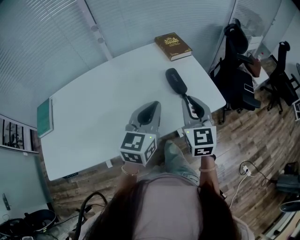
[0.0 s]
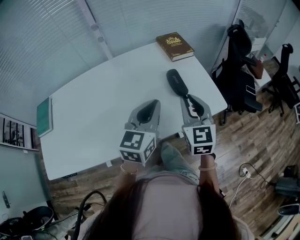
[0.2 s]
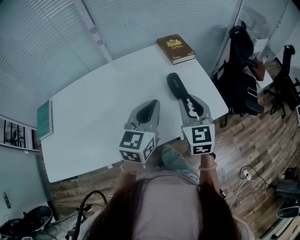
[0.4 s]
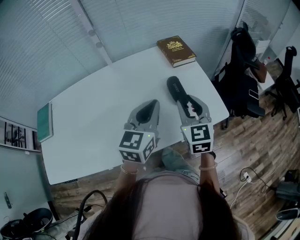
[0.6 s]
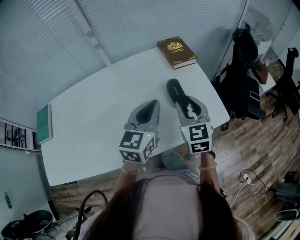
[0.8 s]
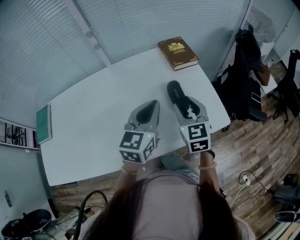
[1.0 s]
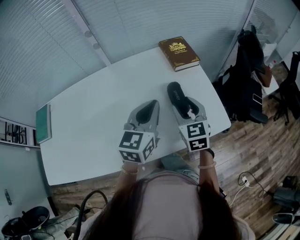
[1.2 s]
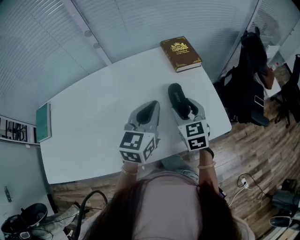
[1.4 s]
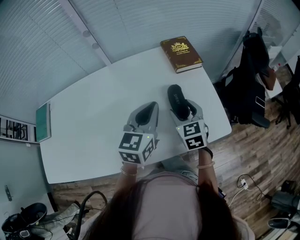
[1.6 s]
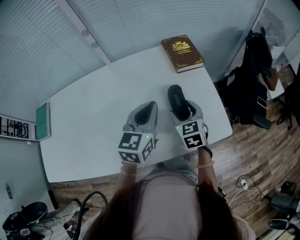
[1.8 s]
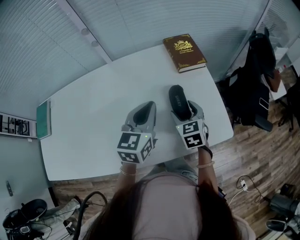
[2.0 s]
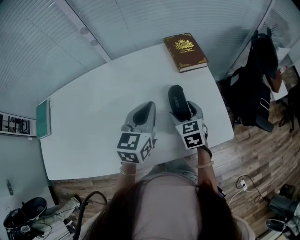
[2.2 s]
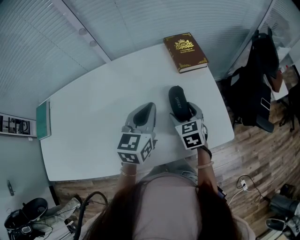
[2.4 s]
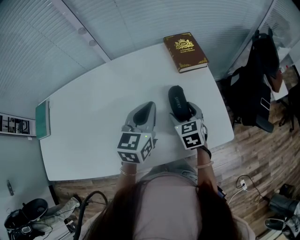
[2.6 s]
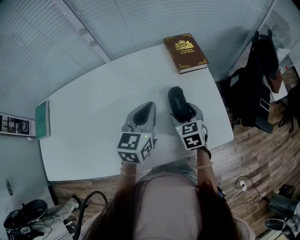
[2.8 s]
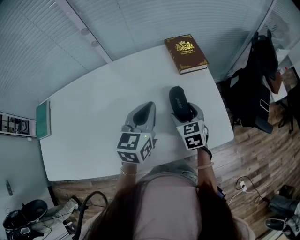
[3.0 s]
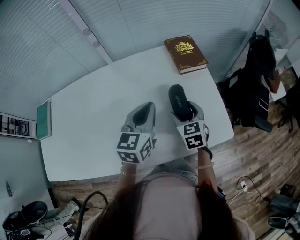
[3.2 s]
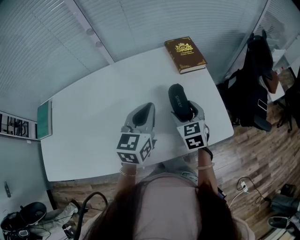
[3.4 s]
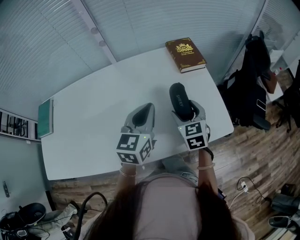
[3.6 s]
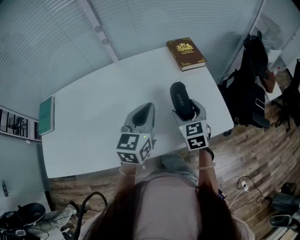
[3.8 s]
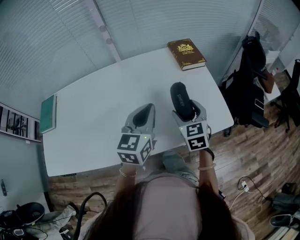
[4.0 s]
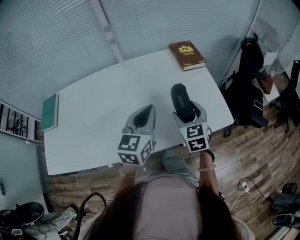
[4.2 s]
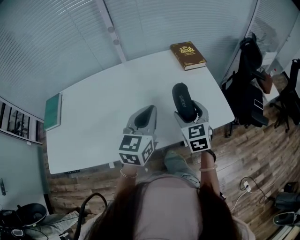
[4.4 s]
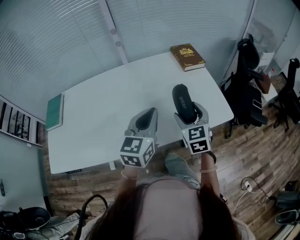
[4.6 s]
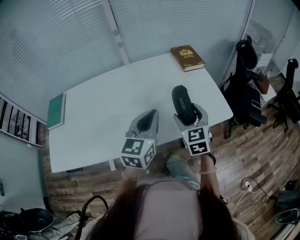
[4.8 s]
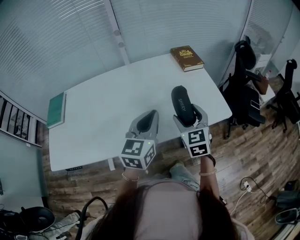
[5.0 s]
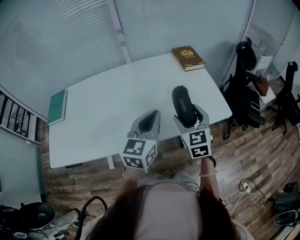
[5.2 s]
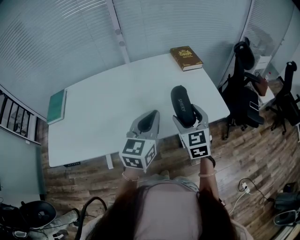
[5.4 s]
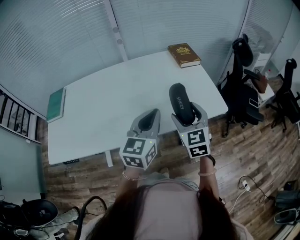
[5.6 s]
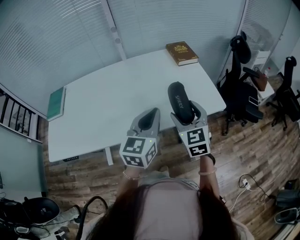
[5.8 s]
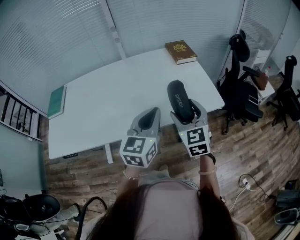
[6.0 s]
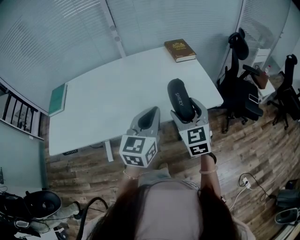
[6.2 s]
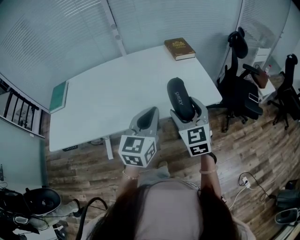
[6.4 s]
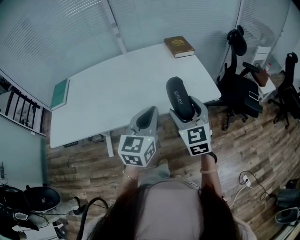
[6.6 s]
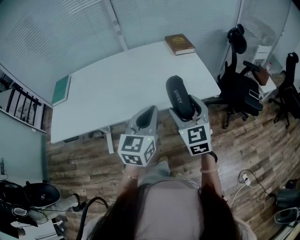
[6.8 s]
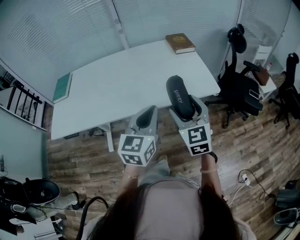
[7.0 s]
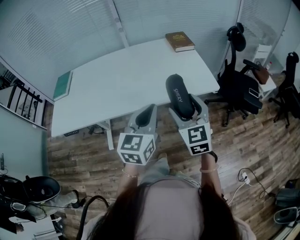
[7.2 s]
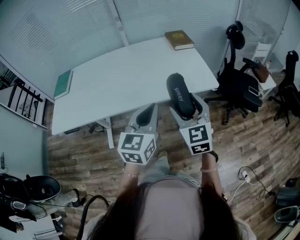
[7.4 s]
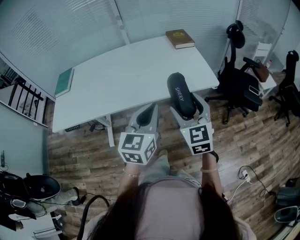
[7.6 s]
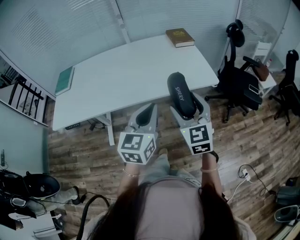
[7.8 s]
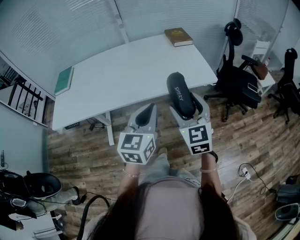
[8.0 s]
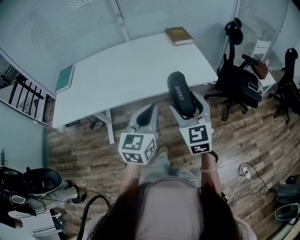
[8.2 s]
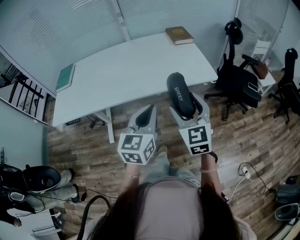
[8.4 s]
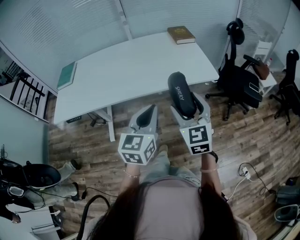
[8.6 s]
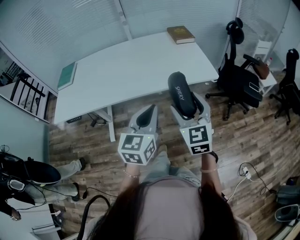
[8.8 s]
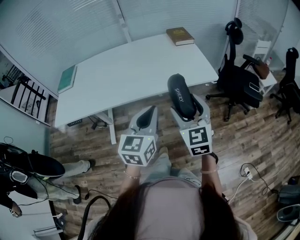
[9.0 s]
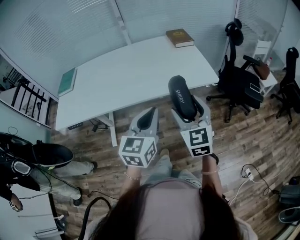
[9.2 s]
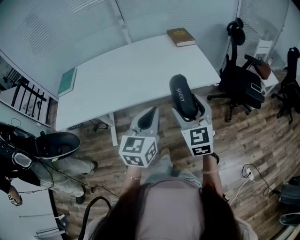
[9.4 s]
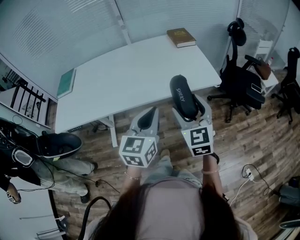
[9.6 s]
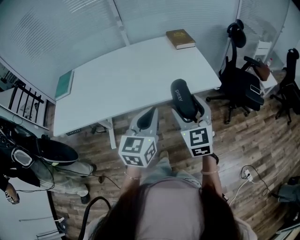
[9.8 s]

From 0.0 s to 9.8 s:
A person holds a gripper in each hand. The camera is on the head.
From 0.0 s to 1.4 s: The right gripper heads forward and downward, covering roughly 20 cm, and opens its fingers. The left gripper goes approximately 15 cm forward.
From 1.4 s to 2.8 s: The right gripper is displaced downward by roughly 10 cm; the left gripper ends up some 5 cm from where it was.
From 2.8 s to 4.2 s: The right gripper shifts roughly 15 cm backward and upward; the left gripper shifts some 15 cm backward, to the left and upward.
From 4.2 s to 5.6 s: The left gripper travels backward by approximately 10 cm, while the right gripper is displaced backward and upward by approximately 15 cm.
From 5.6 s to 7.0 s: Both grippers move backward, some 15 cm.
From 7.0 s to 8.4 s: Both grippers move backward, approximately 10 cm.
From 8.4 s to 9.8 s: There are only small adjustments of the grippers.

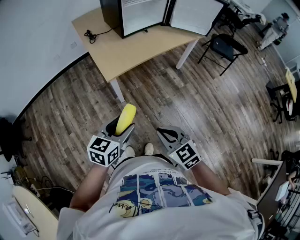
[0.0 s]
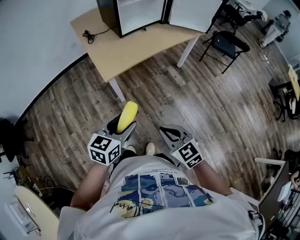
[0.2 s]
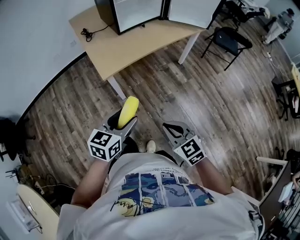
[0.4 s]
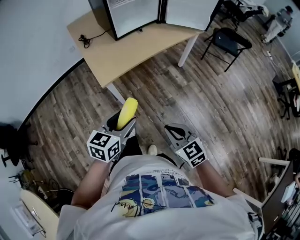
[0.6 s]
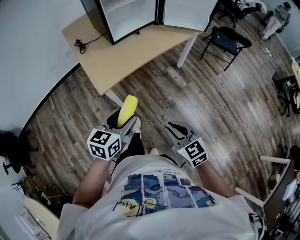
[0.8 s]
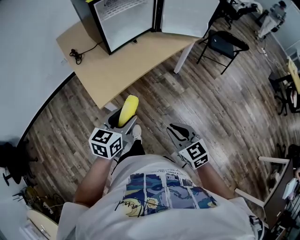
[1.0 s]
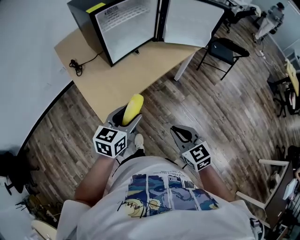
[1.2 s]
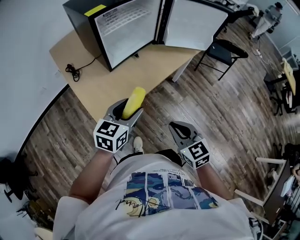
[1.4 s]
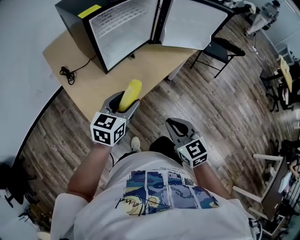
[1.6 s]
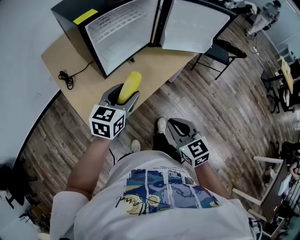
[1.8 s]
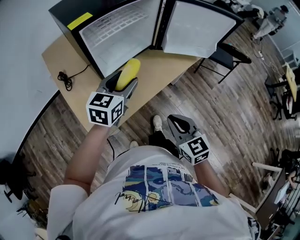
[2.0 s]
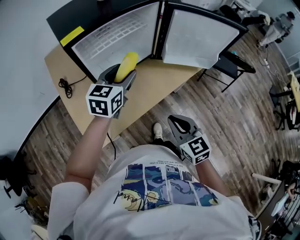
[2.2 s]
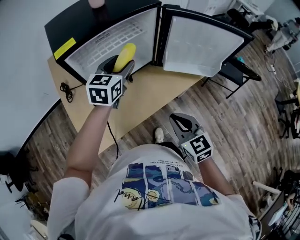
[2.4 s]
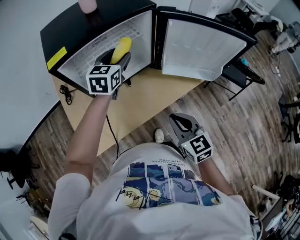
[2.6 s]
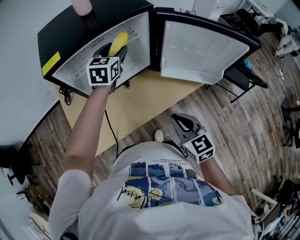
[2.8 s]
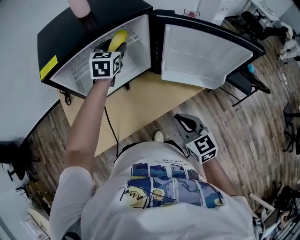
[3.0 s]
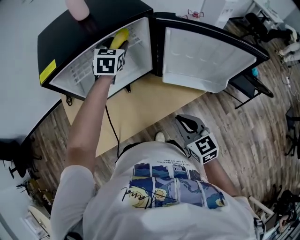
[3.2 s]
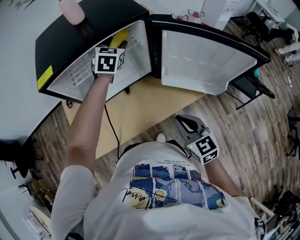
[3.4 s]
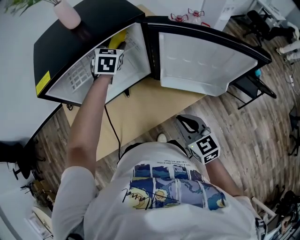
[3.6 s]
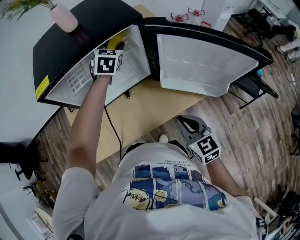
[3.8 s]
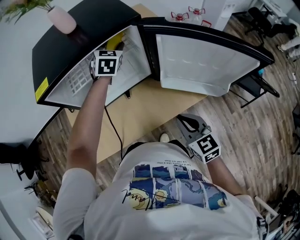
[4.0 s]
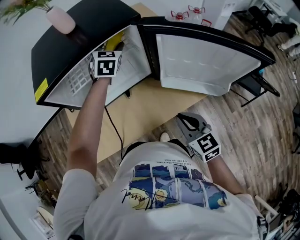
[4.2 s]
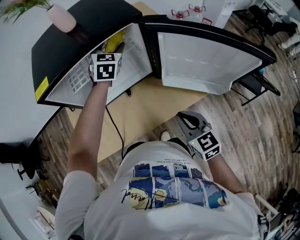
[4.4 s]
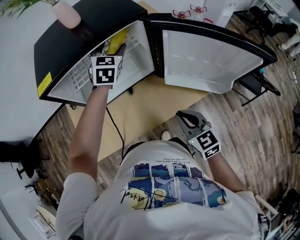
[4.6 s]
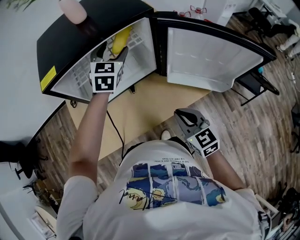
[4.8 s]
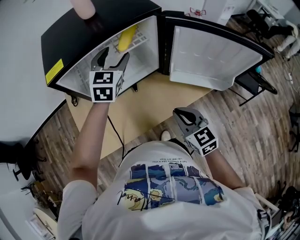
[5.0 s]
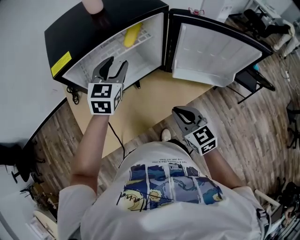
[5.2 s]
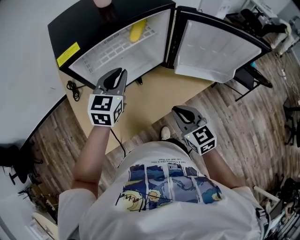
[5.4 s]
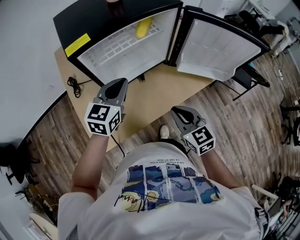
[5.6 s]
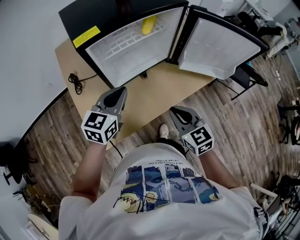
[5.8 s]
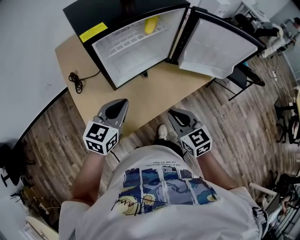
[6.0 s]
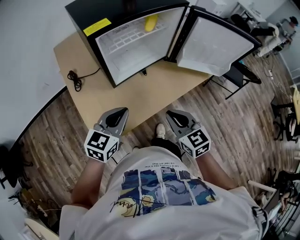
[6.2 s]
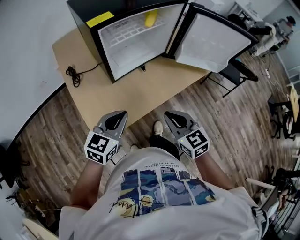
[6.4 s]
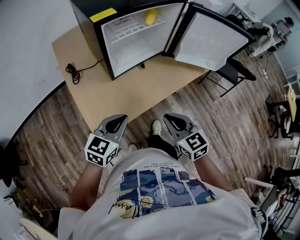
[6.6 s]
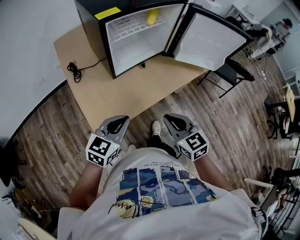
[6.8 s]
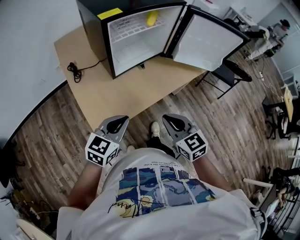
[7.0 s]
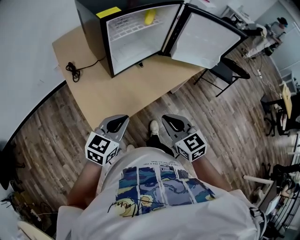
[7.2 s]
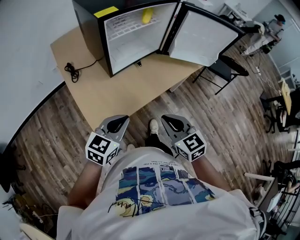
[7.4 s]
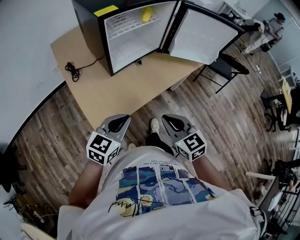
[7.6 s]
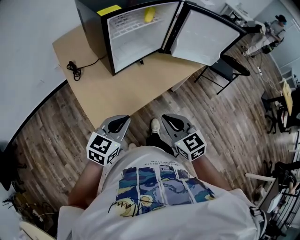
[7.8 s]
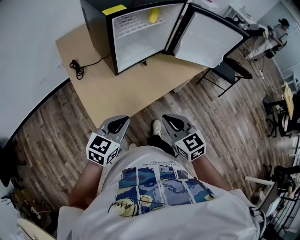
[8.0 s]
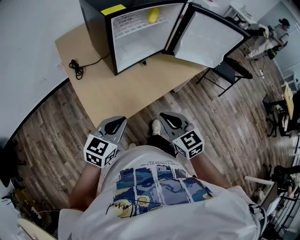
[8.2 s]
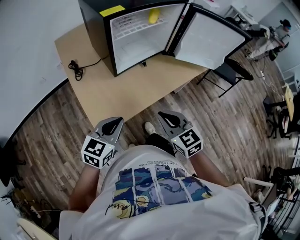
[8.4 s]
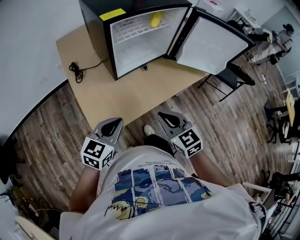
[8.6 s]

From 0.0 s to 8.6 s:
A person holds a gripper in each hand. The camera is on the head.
From 0.0 s to 1.4 s: Both grippers travel together forward, roughly 30 cm.
From 1.4 s to 2.8 s: The right gripper shifts approximately 30 cm forward and to the right, while the left gripper is displaced forward by approximately 40 cm, and swivels approximately 30 degrees.
From 2.8 s to 4.4 s: The grippers both shift forward by approximately 10 cm. The left gripper rotates roughly 20 degrees.
From 4.4 s to 5.8 s: The right gripper is displaced to the left by approximately 15 cm, while the left gripper heads backward and to the left, covering approximately 30 cm, turns by roughly 40 degrees, and closes its fingers.
From 5.8 s to 7.2 s: The grippers both shift backward by about 20 cm.
From 7.2 s to 8.6 s: The grippers make only small movements.

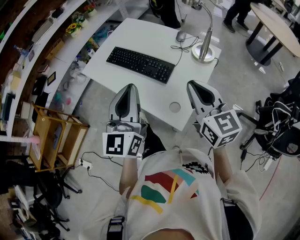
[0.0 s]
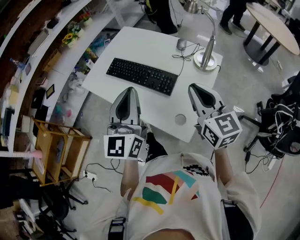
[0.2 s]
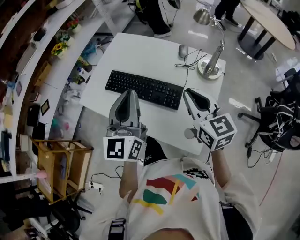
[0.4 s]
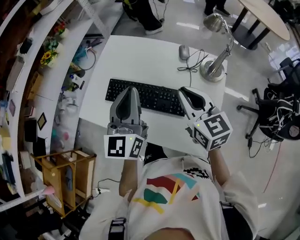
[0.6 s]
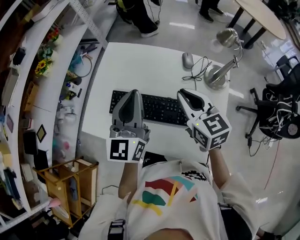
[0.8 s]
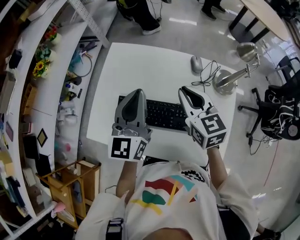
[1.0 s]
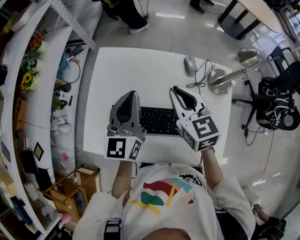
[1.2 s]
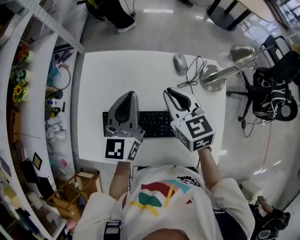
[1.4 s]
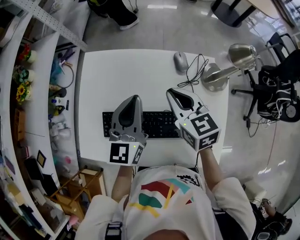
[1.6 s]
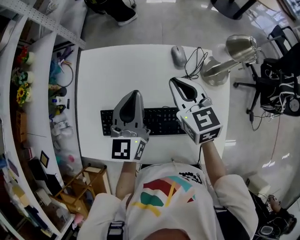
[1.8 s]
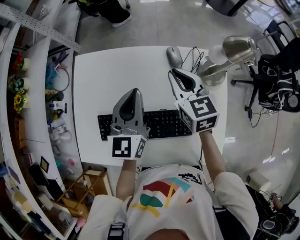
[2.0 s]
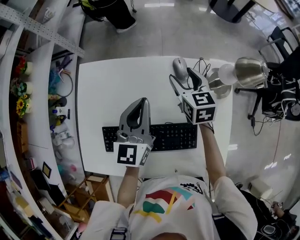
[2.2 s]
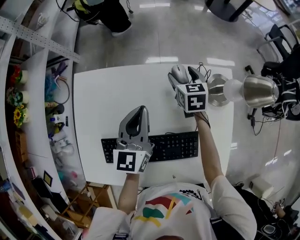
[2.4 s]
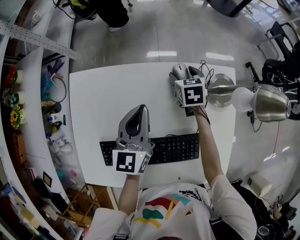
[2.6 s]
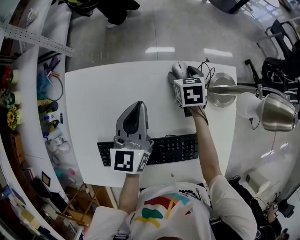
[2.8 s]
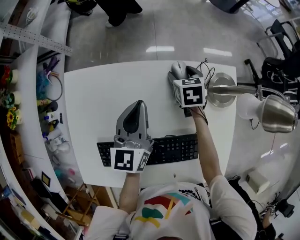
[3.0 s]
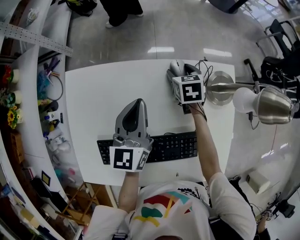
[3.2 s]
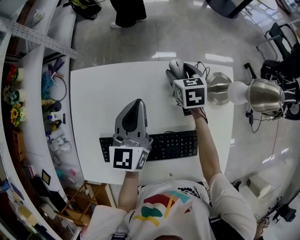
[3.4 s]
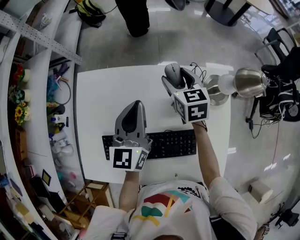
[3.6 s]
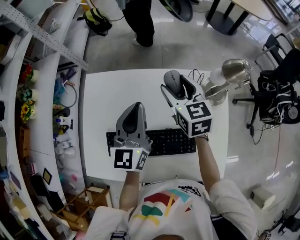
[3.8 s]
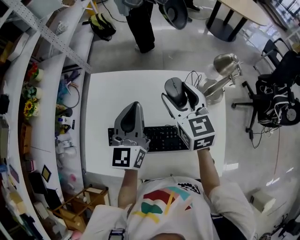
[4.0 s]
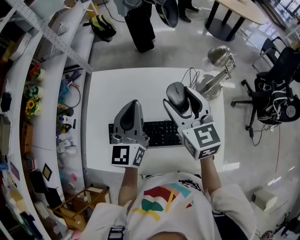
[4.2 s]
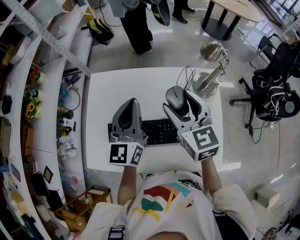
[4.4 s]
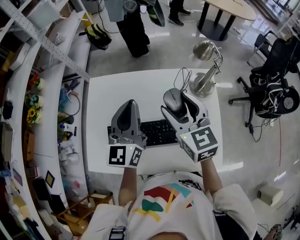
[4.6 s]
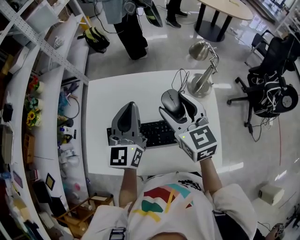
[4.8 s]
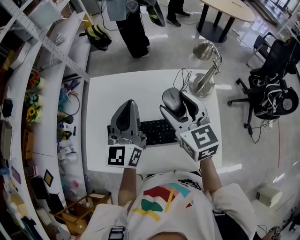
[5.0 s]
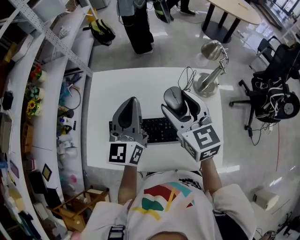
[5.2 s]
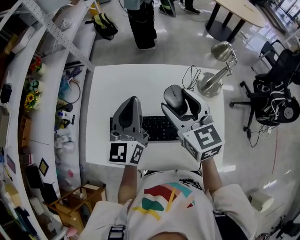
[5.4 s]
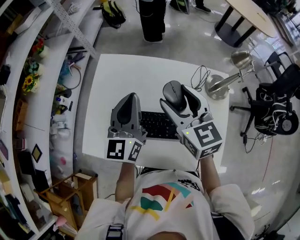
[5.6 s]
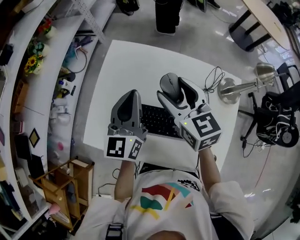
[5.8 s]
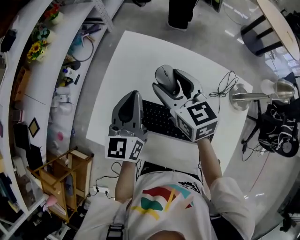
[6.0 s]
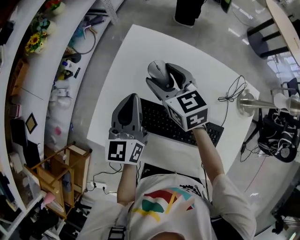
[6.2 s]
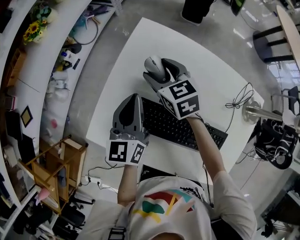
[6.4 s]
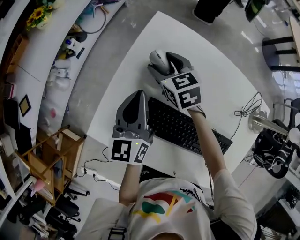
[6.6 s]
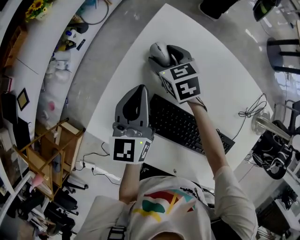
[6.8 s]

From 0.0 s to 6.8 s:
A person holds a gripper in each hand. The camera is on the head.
From 0.0 s to 1.4 s: The two grippers travel together, forward, some 50 cm. The right gripper rotates some 30 degrees. The left gripper changes its angle by approximately 30 degrees.
From 1.4 s to 2.8 s: The right gripper travels downward, forward and to the right by approximately 35 cm, changes its angle by roughly 30 degrees, and opens its fingers. The left gripper is displaced forward, downward and to the right by some 15 cm.
From 2.8 s to 4.0 s: The left gripper shifts roughly 20 cm upward and backward. Meanwhile the right gripper goes about 35 cm upward and backward, and angles its fingers upward, by about 30 degrees.
From 4.0 s to 5.4 s: The right gripper moves backward, roughly 10 cm. Meanwhile the left gripper goes about 5 cm backward.
From 5.4 s to 6.8 s: The left gripper ends up roughly 35 cm from where it was, and changes its angle by roughly 30 degrees; the right gripper shifts by approximately 50 cm, and changes its angle by roughly 40 degrees.
